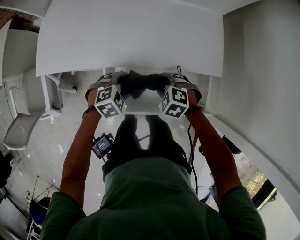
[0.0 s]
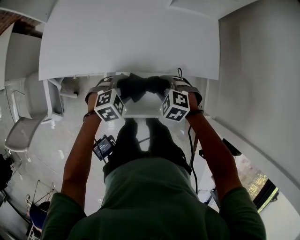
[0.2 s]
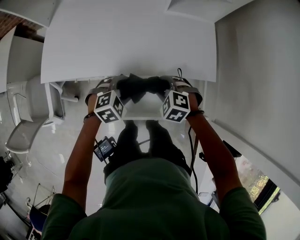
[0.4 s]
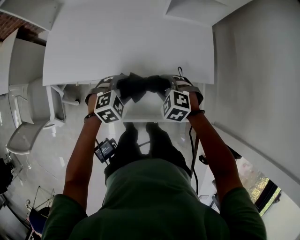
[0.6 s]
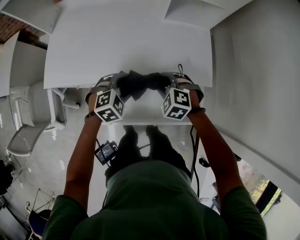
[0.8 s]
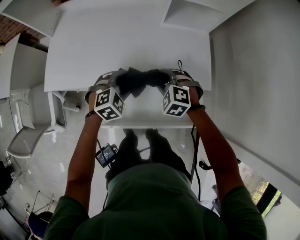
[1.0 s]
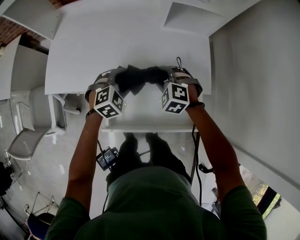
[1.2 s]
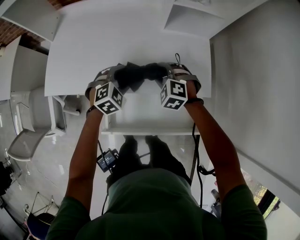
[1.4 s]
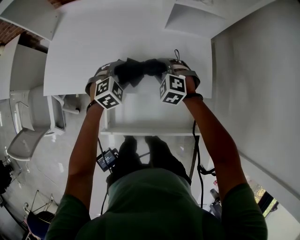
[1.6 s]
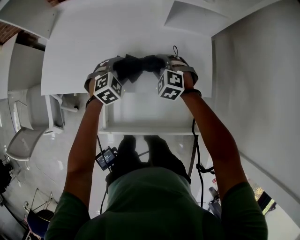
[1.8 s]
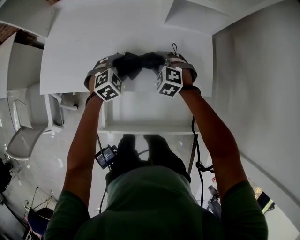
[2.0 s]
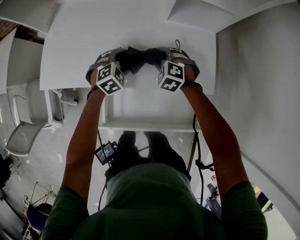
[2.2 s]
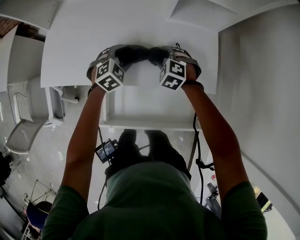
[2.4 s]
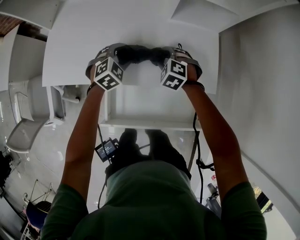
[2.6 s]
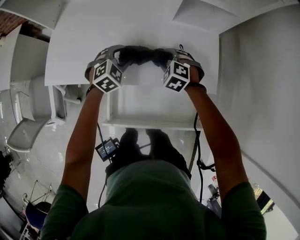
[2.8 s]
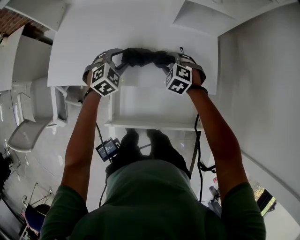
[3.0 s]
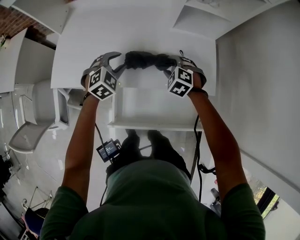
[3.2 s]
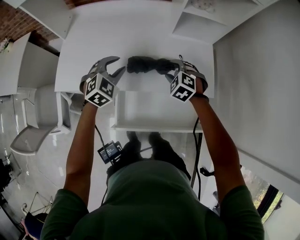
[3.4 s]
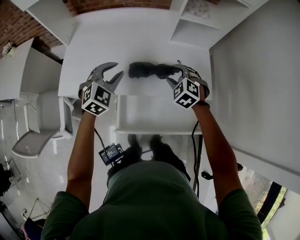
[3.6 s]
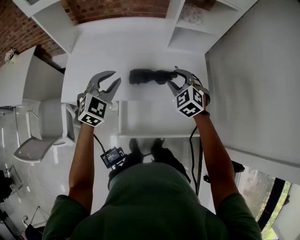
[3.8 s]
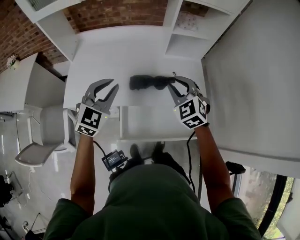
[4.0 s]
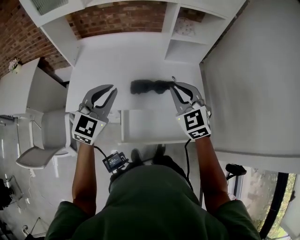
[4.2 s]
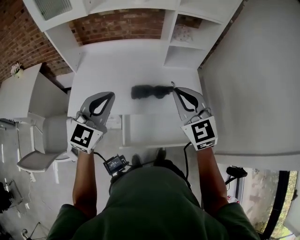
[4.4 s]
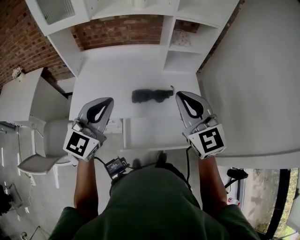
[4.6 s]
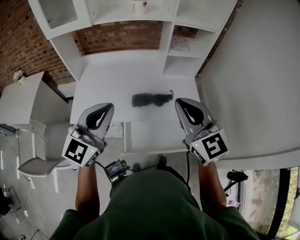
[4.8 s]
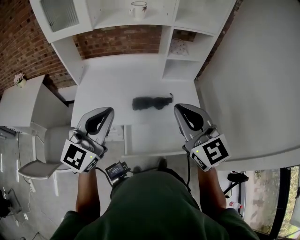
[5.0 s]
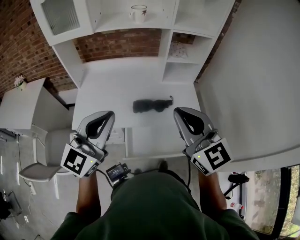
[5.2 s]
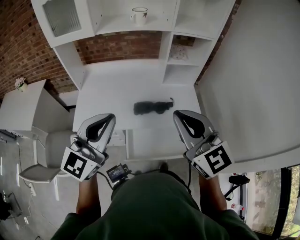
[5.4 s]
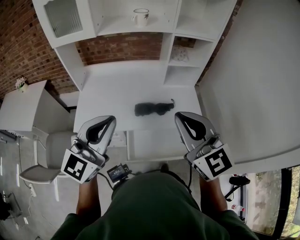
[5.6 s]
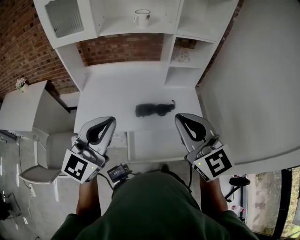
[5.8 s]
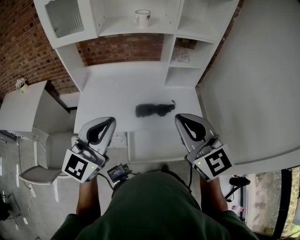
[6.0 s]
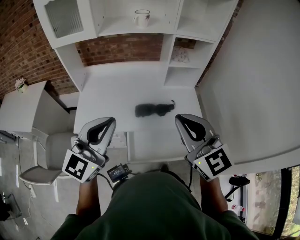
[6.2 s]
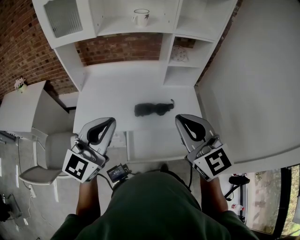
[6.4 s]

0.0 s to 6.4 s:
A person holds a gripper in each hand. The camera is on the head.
0.0 to 1.6 s: Both grippers travel together forward and upward, some 20 cm. The left gripper changes its angle by roughly 20 degrees. The right gripper turns by about 20 degrees.
1.6 to 3.2 s: The left gripper moves to the left, some 5 cm.
3.2 to 4.8 s: The grippers both shift upward and backward by some 50 cm. The left gripper points its fingers approximately 50 degrees further upward, and closes its fingers; the right gripper tilts its fingers about 60 degrees upward, and closes its fingers.
4.8 to 6.4 s: The right gripper ends up roughly 5 cm from where it was.

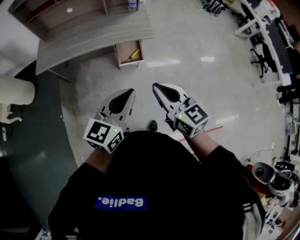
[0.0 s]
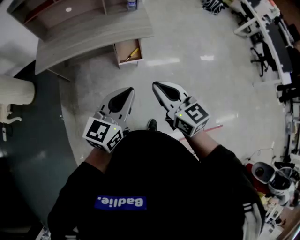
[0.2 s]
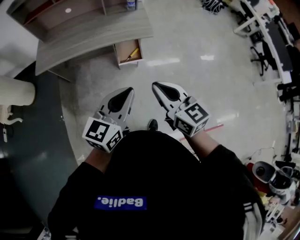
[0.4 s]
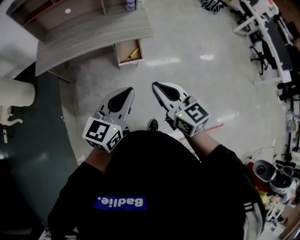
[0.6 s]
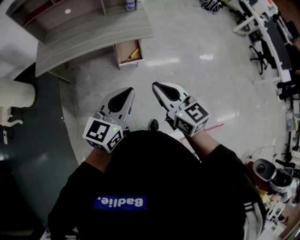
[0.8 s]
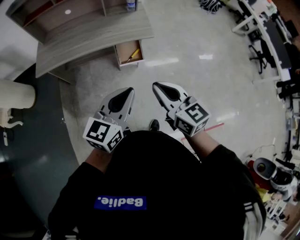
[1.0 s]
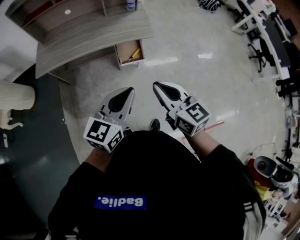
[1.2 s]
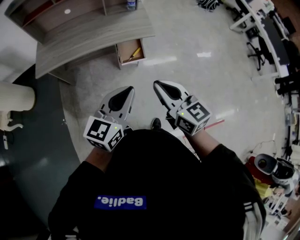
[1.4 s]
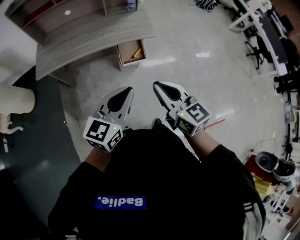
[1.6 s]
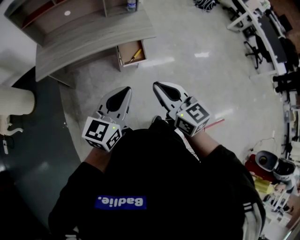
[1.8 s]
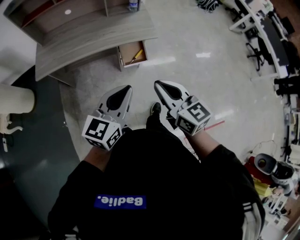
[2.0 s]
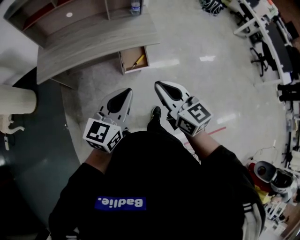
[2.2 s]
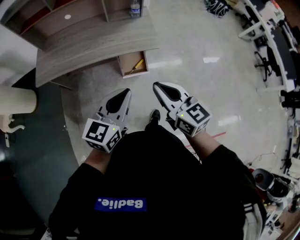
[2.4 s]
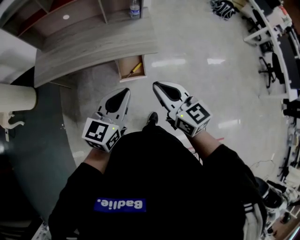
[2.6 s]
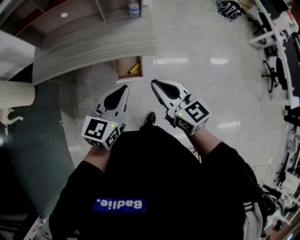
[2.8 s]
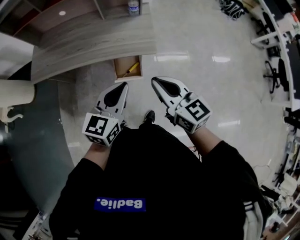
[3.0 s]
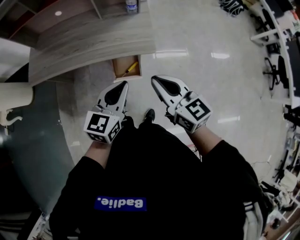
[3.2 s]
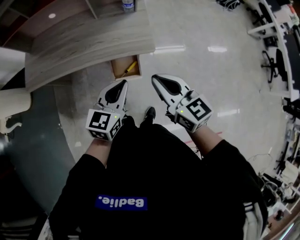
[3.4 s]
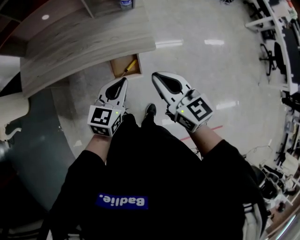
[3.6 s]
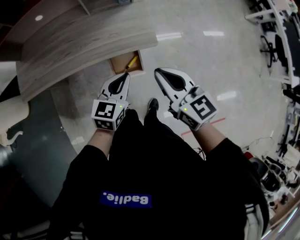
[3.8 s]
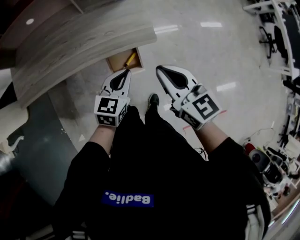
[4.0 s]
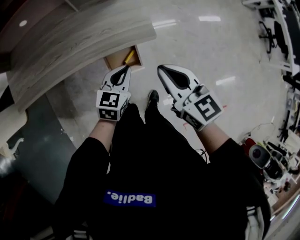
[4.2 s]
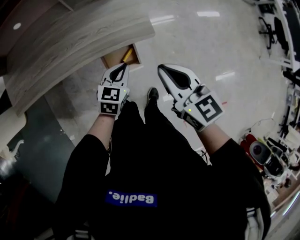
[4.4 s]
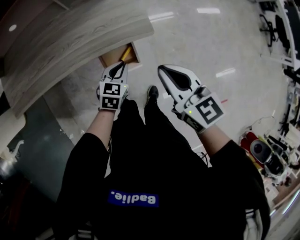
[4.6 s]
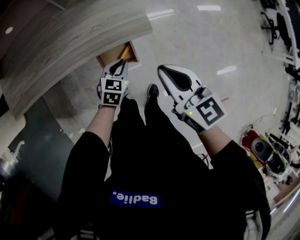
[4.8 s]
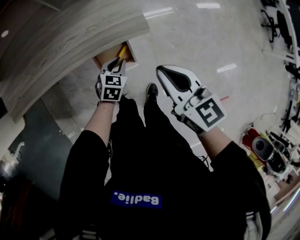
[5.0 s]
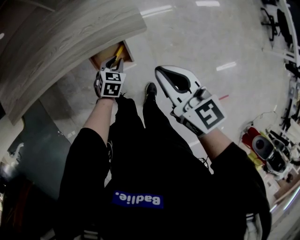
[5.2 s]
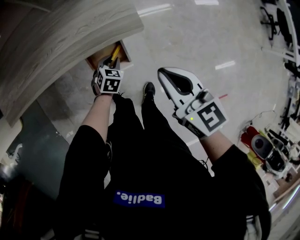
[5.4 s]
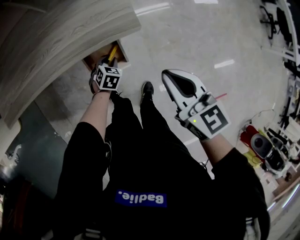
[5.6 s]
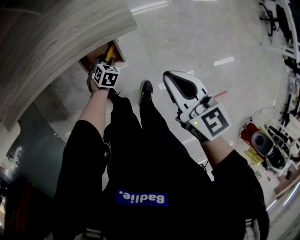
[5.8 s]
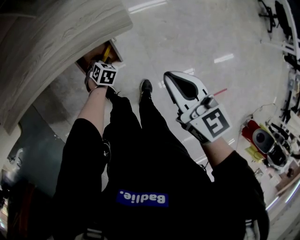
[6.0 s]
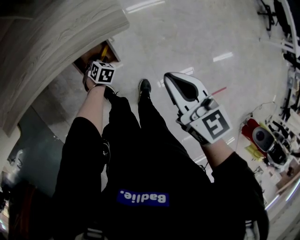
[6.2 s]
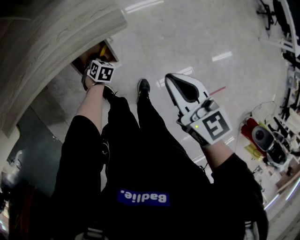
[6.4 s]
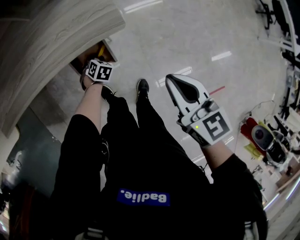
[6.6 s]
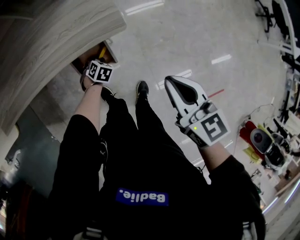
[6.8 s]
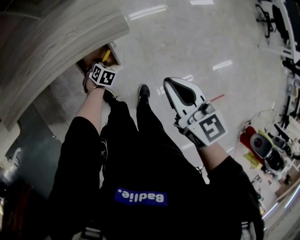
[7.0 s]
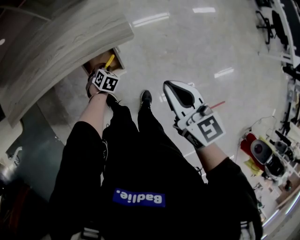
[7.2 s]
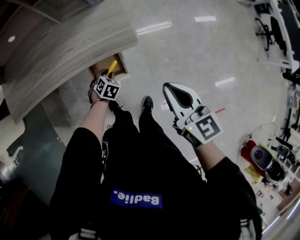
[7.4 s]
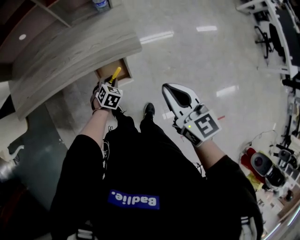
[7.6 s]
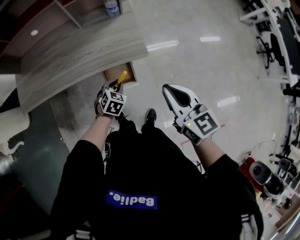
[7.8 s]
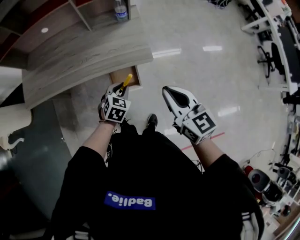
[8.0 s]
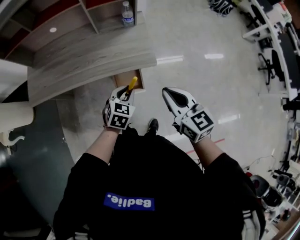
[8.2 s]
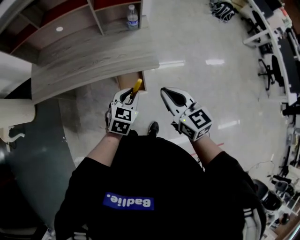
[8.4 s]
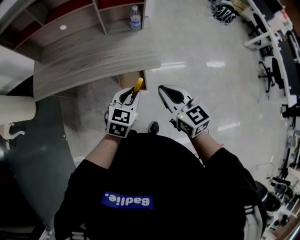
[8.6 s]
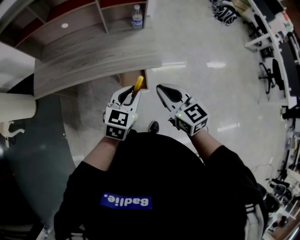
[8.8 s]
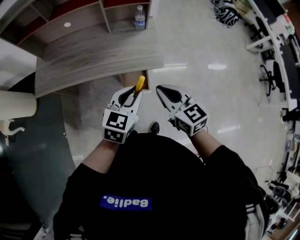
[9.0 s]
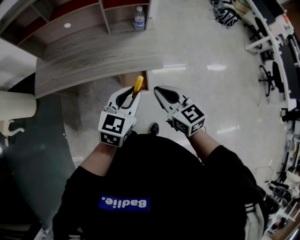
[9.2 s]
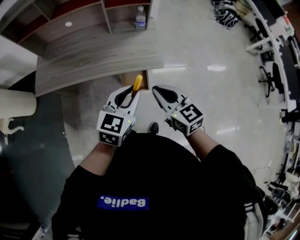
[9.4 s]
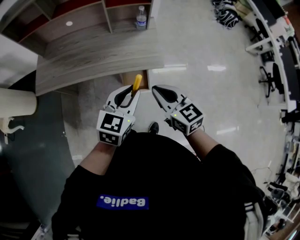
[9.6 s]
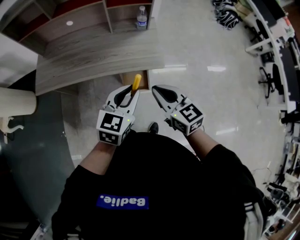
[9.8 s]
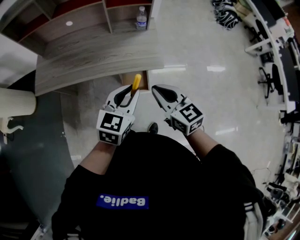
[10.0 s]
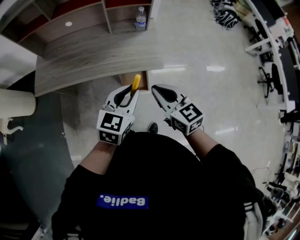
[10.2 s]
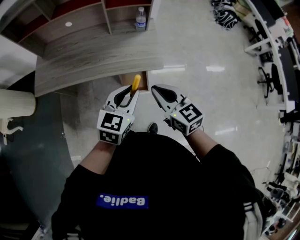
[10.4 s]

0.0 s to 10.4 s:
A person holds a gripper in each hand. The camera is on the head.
0.0 to 1.4 s: The grippers move only a little.
1.4 to 3.0 s: The two grippers go approximately 20 cm forward.
3.0 to 4.4 s: The left gripper shifts approximately 25 cm downward and forward, and turns by some 20 degrees; the right gripper shifts about 10 cm forward and downward.
4.4 to 6.0 s: The left gripper moves downward, about 25 cm, tips its fingers downward by roughly 30 degrees, and opens its fingers. The right gripper shifts approximately 10 cm to the right and downward.
6.0 to 7.4 s: Both grippers move upward, some 10 cm.
7.4 to 9.0 s: The right gripper is displaced to the left and upward by some 15 cm, and turns by approximately 20 degrees. Meanwhile the left gripper is displaced upward by some 40 cm, and angles its fingers upward, by about 40 degrees.
9.0 to 10.4 s: The grippers stay close to where they were, moving slightly.

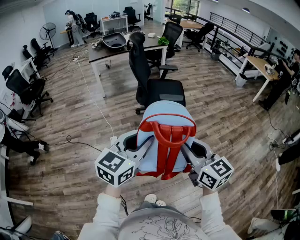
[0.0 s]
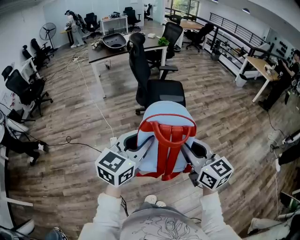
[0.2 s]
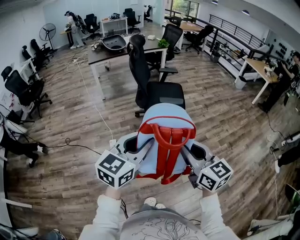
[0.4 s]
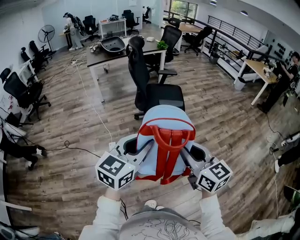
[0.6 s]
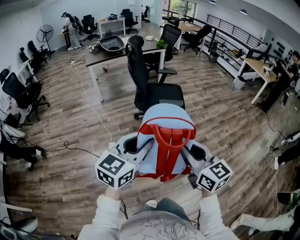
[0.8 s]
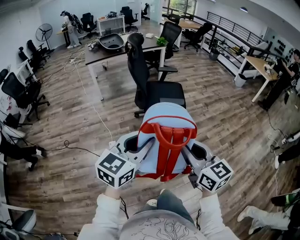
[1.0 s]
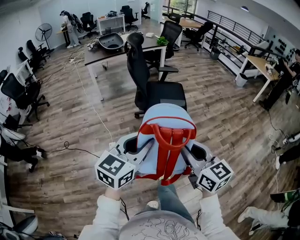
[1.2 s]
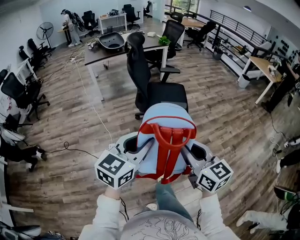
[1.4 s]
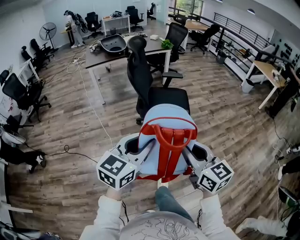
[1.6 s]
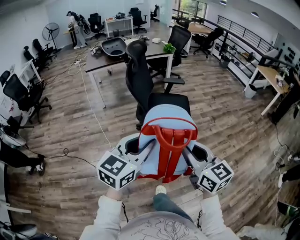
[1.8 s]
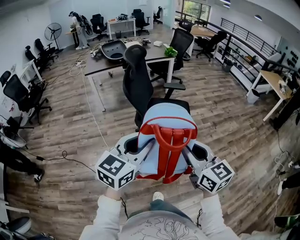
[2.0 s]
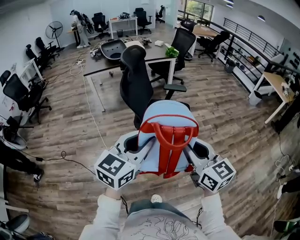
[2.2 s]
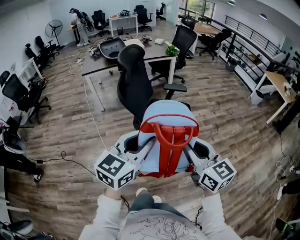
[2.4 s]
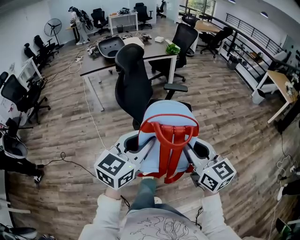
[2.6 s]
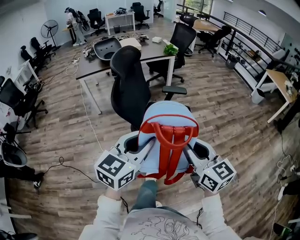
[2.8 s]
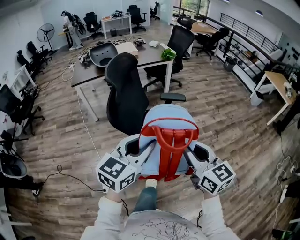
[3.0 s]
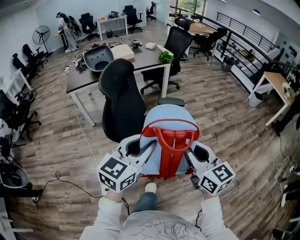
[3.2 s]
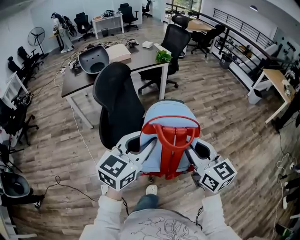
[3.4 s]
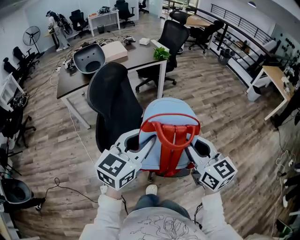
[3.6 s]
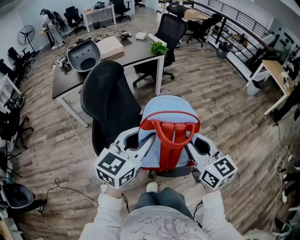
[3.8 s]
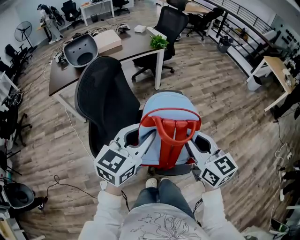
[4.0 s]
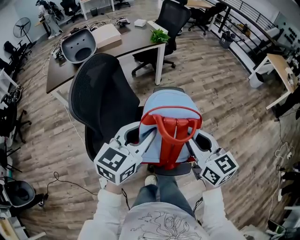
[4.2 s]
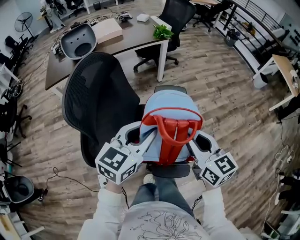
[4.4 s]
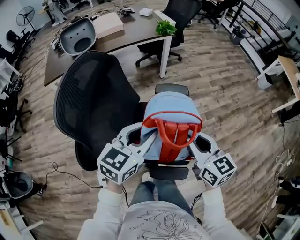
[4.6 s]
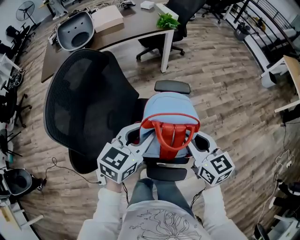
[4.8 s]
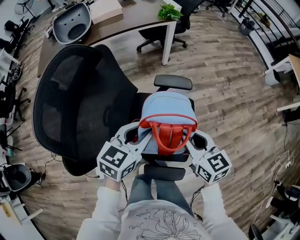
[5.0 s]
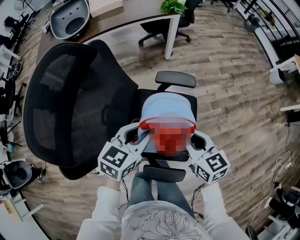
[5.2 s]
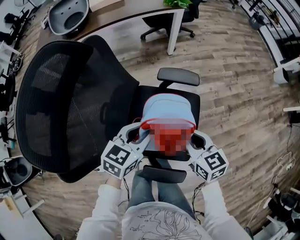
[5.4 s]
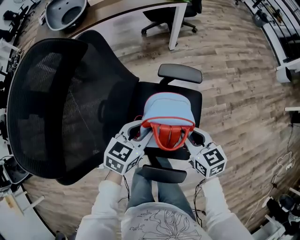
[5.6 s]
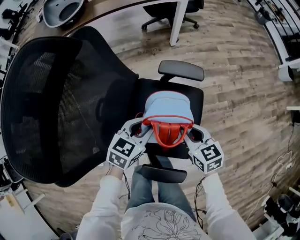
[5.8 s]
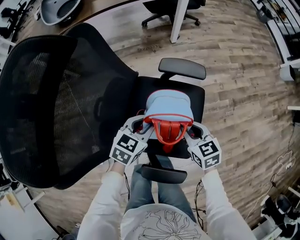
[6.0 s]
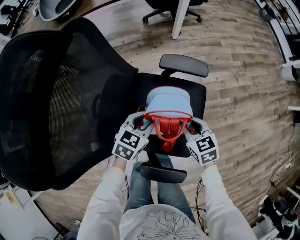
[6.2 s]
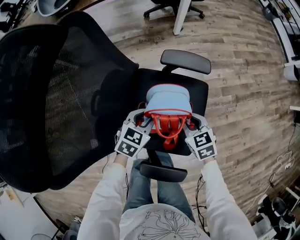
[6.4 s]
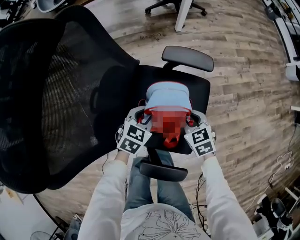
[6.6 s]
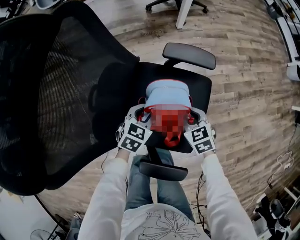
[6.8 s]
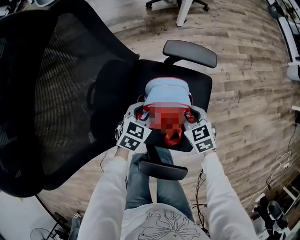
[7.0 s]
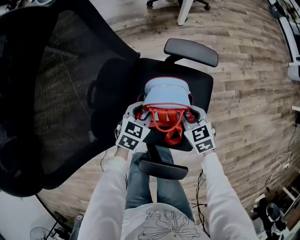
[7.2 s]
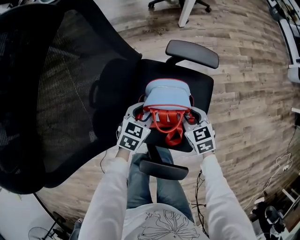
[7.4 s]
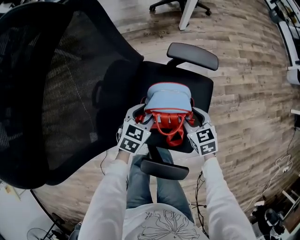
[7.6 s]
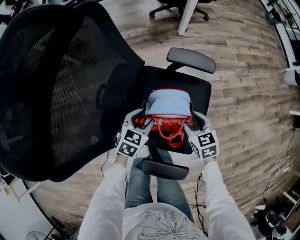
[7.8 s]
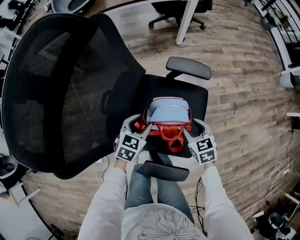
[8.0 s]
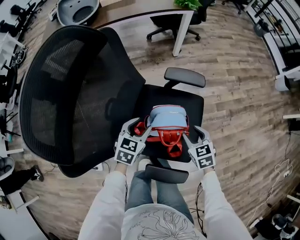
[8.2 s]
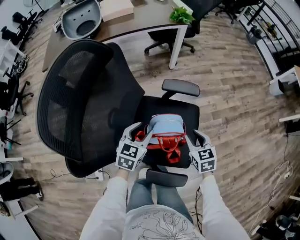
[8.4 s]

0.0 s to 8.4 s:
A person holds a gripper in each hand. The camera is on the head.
0.0 to 1.4 s: Both grippers travel together forward, approximately 15 cm.
1.4 to 2.8 s: Both grippers move forward, some 35 cm.
2.8 to 4.2 s: Both grippers travel together forward, some 30 cm.
4.2 to 5.6 s: Both grippers move downward and forward, some 30 cm. The right gripper swivels some 30 degrees. Meanwhile the left gripper swivels roughly 30 degrees.
5.6 to 7.0 s: The grippers both shift downward by roughly 15 cm. The right gripper changes its angle by some 20 degrees.
7.0 to 8.4 s: Both grippers move upward, about 15 cm.
